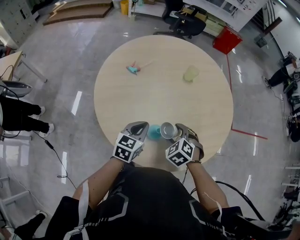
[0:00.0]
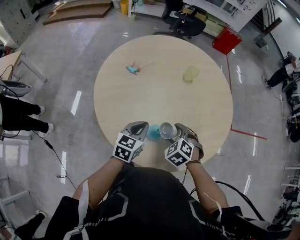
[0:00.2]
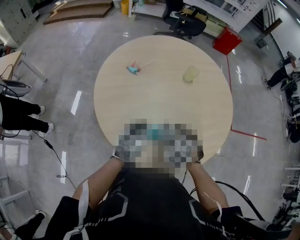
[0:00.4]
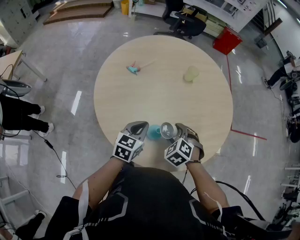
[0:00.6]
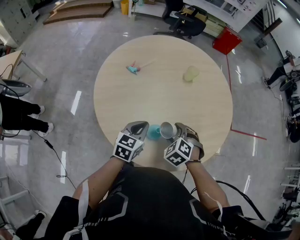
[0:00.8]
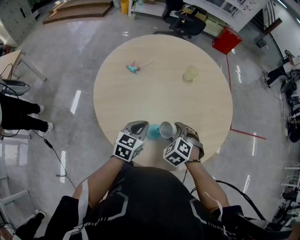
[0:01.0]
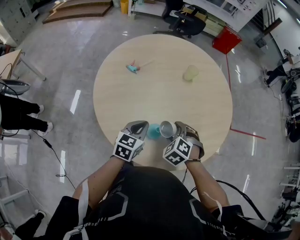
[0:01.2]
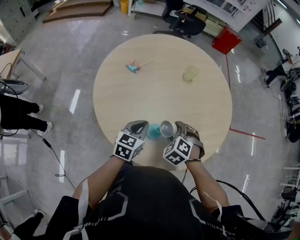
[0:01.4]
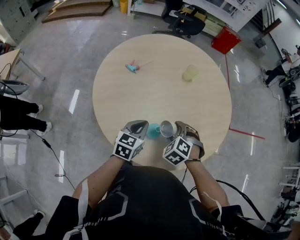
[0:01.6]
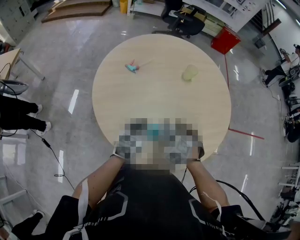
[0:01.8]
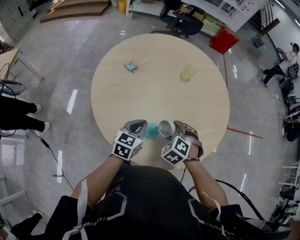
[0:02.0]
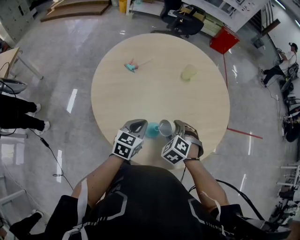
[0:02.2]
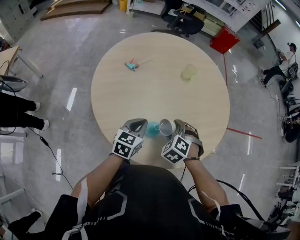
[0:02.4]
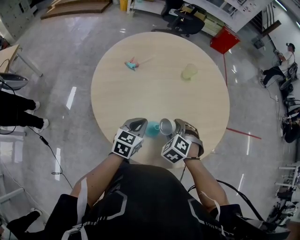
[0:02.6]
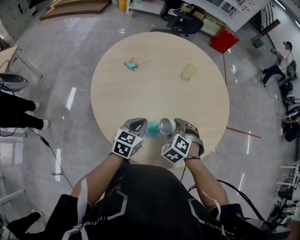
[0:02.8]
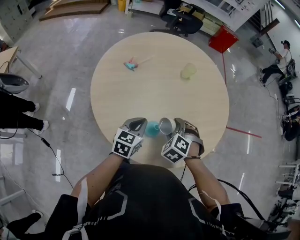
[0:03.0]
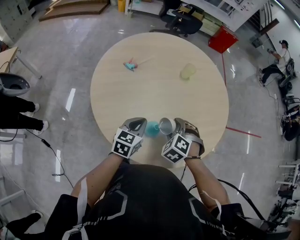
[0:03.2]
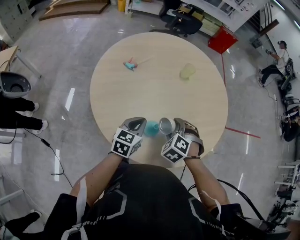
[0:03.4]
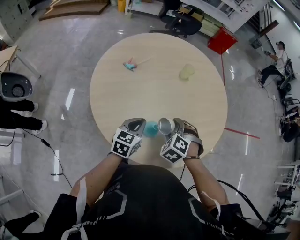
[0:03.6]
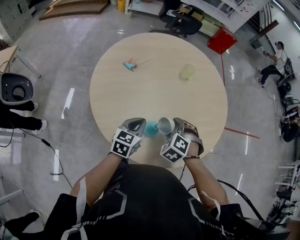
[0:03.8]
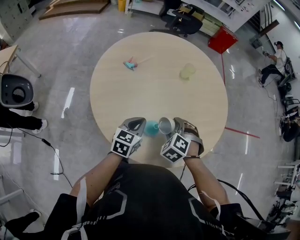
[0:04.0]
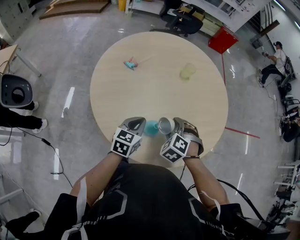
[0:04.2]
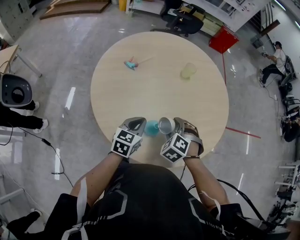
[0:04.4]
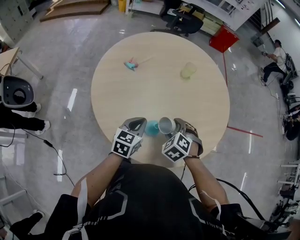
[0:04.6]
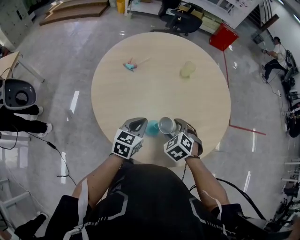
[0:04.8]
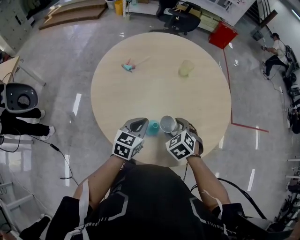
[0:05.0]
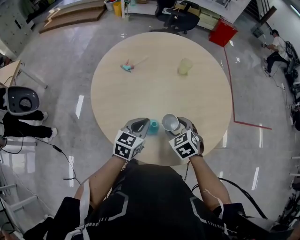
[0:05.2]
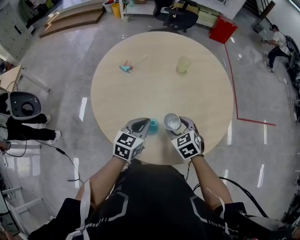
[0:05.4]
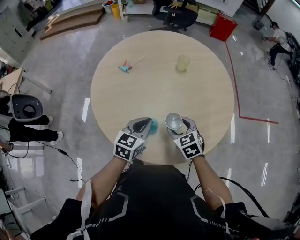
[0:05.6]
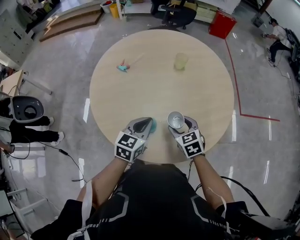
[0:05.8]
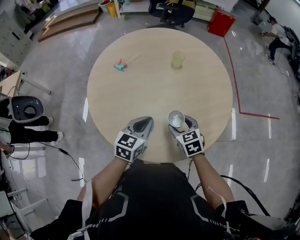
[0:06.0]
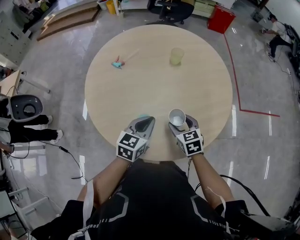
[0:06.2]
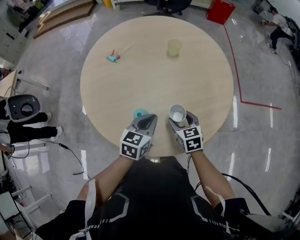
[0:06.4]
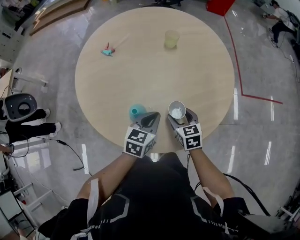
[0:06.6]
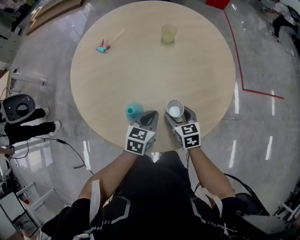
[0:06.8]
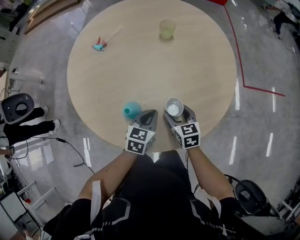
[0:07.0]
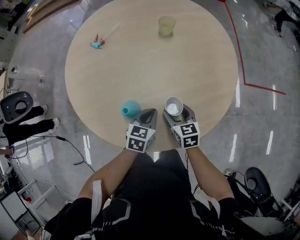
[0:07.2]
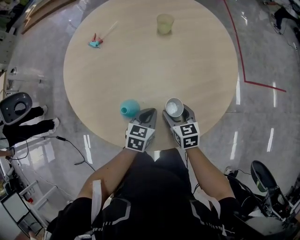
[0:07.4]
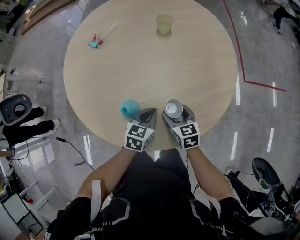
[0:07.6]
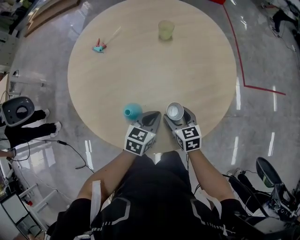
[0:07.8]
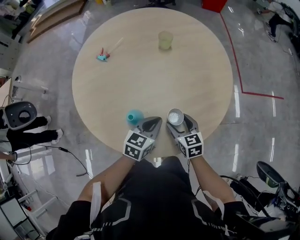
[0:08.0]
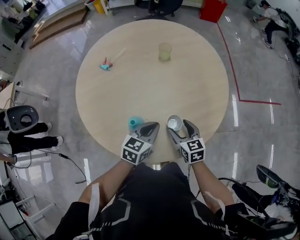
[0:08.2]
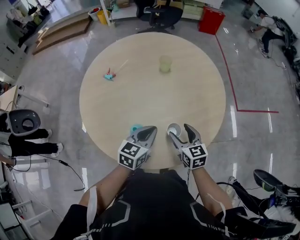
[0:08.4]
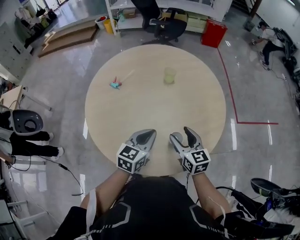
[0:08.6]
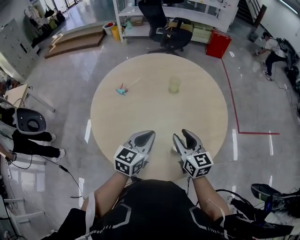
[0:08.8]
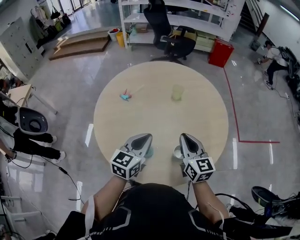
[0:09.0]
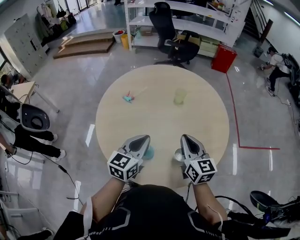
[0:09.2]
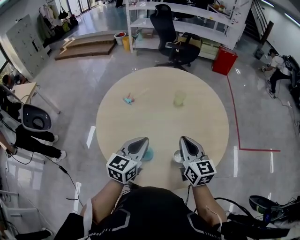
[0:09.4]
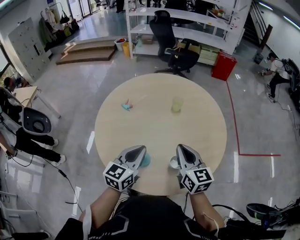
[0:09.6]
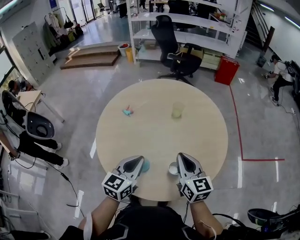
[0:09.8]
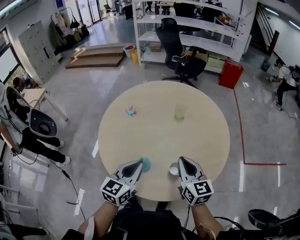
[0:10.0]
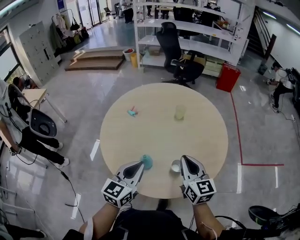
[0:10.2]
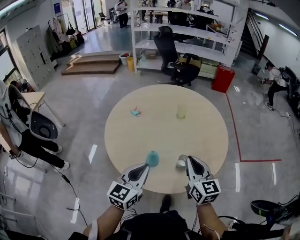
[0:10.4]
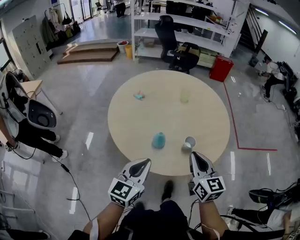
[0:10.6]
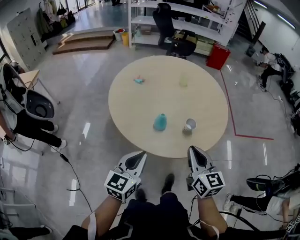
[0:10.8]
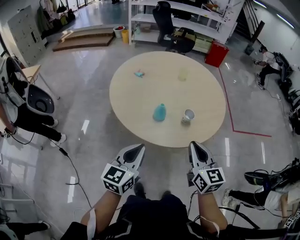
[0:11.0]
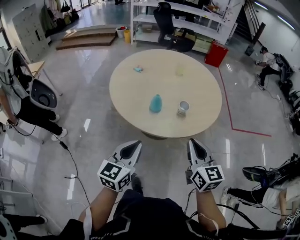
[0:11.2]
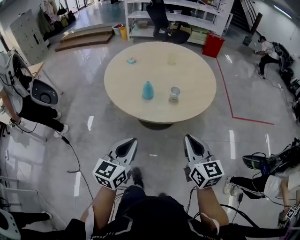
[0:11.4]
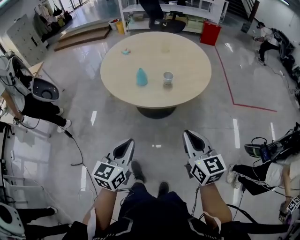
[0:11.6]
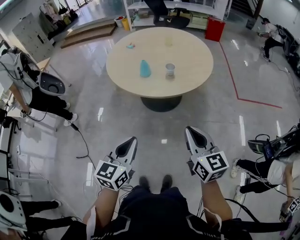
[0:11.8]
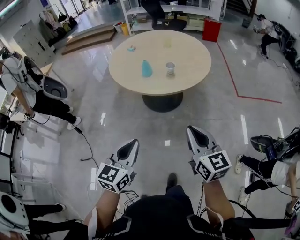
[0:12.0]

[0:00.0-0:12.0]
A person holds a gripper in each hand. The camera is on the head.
0:00.0 to 0:01.6: The grippers make only small movements.
0:01.6 to 0:03.0: Both grippers stay put.
0:03.0 to 0:04.4: Both grippers stay put.
0:04.4 to 0:06.0: The two grippers go approximately 5 cm to the right. The right gripper rolls clockwise, seen from behind, by about 40 degrees.
0:06.0 to 0:07.6: The right gripper heads downward, covering some 10 cm. Meanwhile the left gripper moves downward and to the right, some 15 cm.
0:07.6 to 0:09.0: The right gripper is displaced upward by about 25 cm, rotates roughly 30 degrees, and closes. Meanwhile the left gripper heads upward and to the left, covering some 25 cm, and rotates approximately 30 degrees.
0:09.0 to 0:10.4: The right gripper shifts approximately 10 cm backward and upward. The left gripper shifts about 15 cm backward.
0:10.4 to 0:12.0: The two grippers travel together, backward, roughly 50 cm.

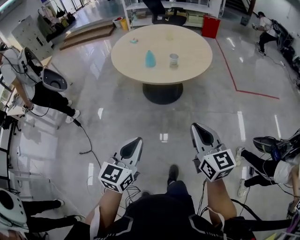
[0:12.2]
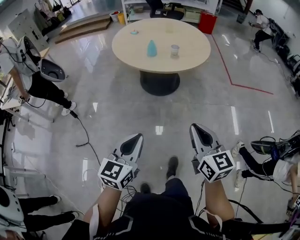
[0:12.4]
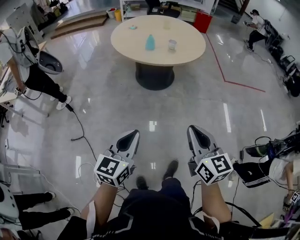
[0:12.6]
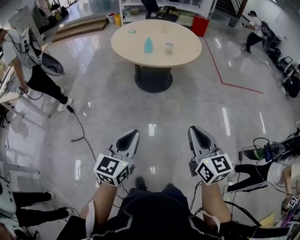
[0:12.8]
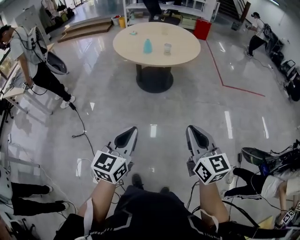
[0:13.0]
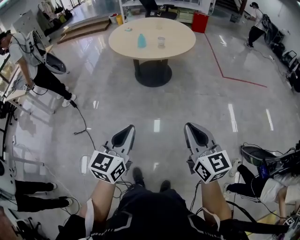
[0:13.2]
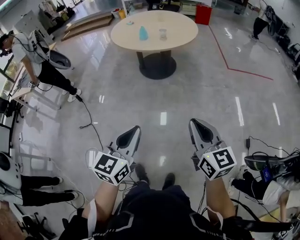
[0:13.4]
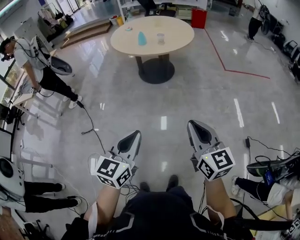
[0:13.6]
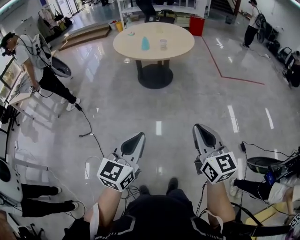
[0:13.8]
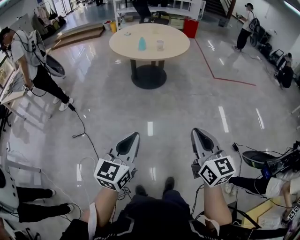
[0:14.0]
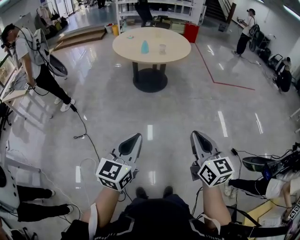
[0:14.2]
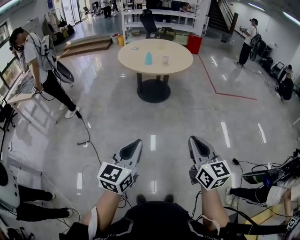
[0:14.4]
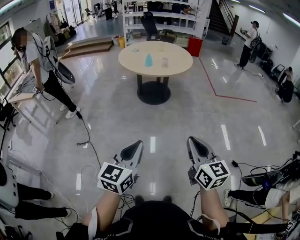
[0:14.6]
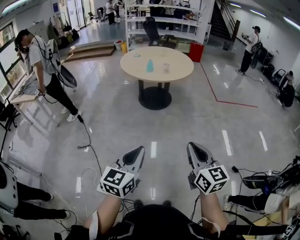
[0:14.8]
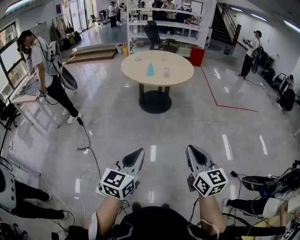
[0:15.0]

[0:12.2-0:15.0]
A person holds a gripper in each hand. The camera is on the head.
0:12.2 to 0:13.6: The grippers both shift backward by roughly 30 cm.
0:13.6 to 0:15.0: Both grippers travel together backward and to the left, about 10 cm.

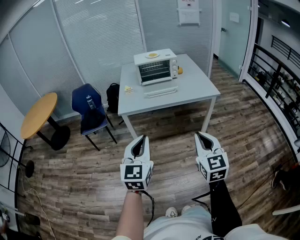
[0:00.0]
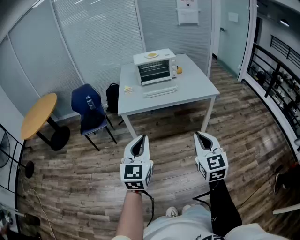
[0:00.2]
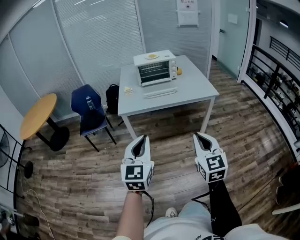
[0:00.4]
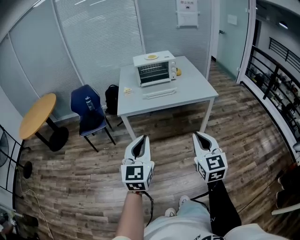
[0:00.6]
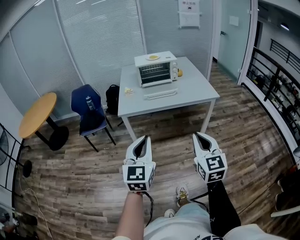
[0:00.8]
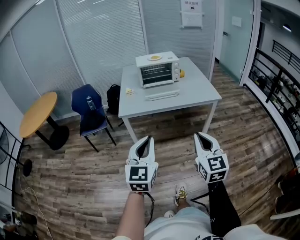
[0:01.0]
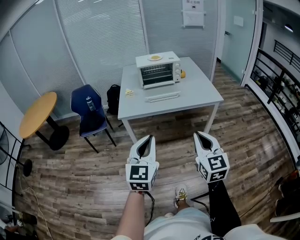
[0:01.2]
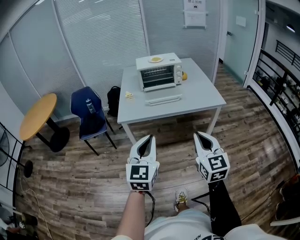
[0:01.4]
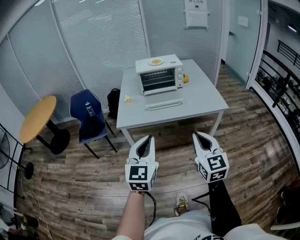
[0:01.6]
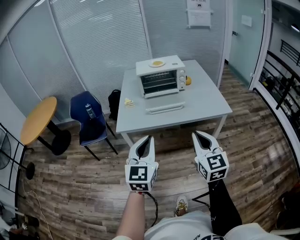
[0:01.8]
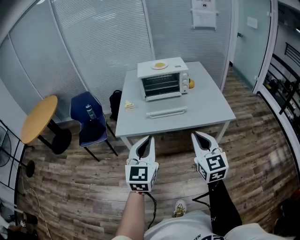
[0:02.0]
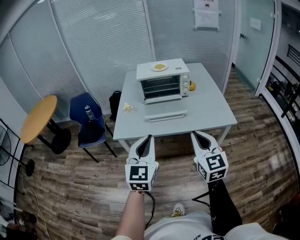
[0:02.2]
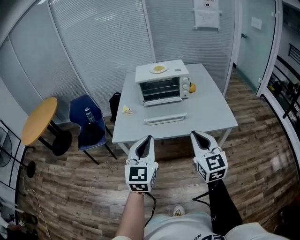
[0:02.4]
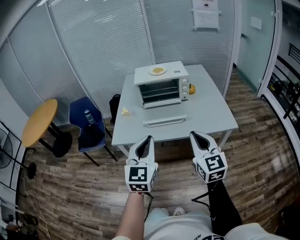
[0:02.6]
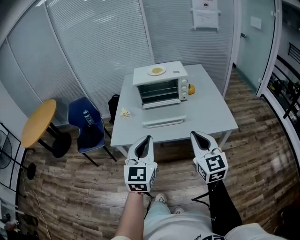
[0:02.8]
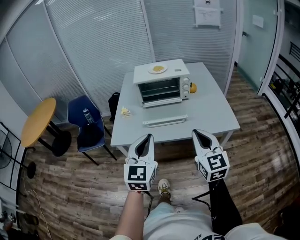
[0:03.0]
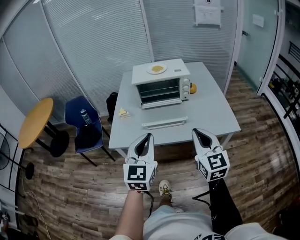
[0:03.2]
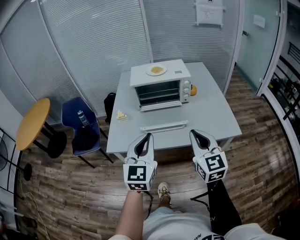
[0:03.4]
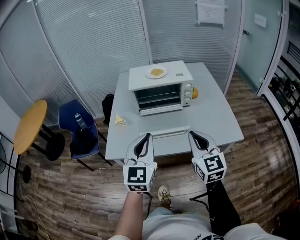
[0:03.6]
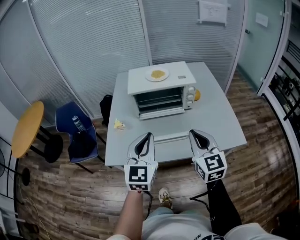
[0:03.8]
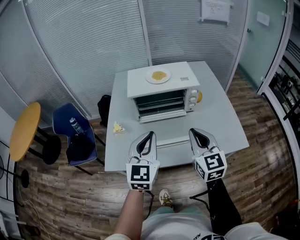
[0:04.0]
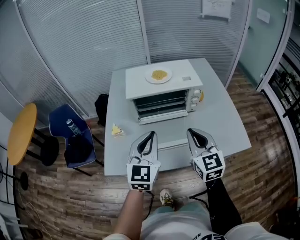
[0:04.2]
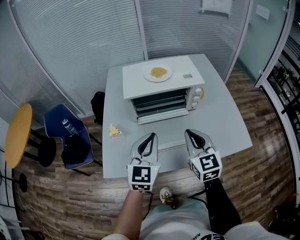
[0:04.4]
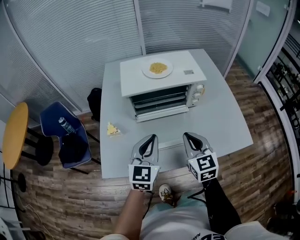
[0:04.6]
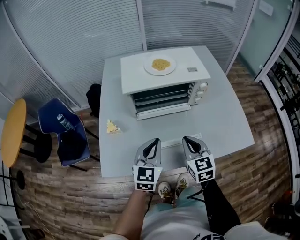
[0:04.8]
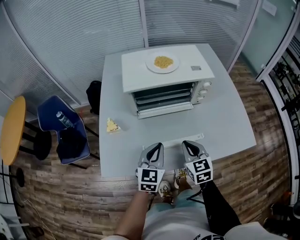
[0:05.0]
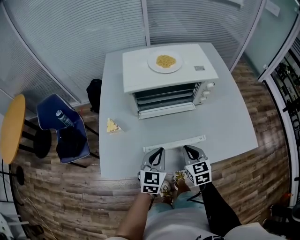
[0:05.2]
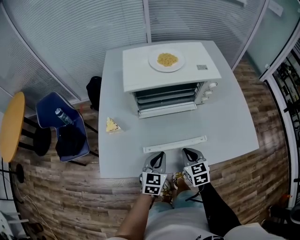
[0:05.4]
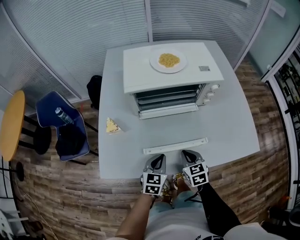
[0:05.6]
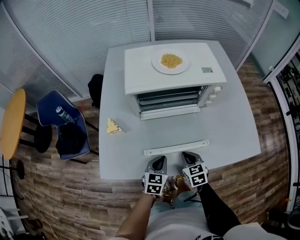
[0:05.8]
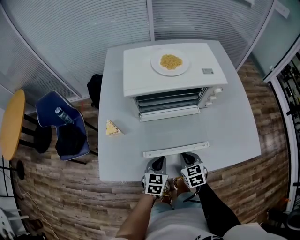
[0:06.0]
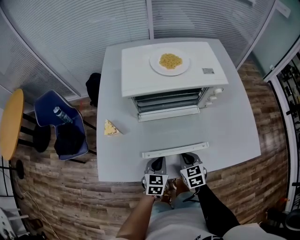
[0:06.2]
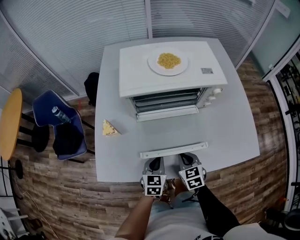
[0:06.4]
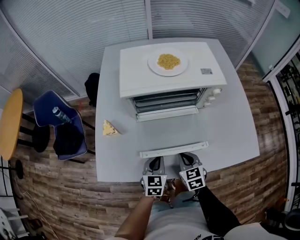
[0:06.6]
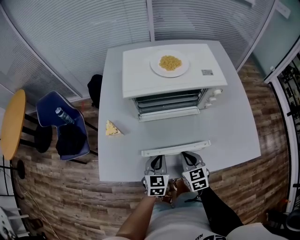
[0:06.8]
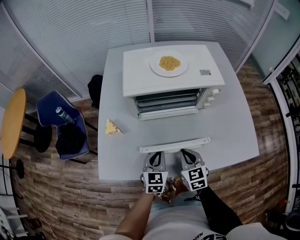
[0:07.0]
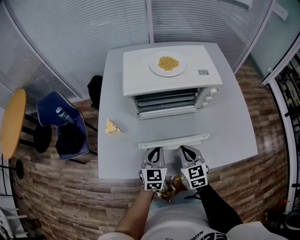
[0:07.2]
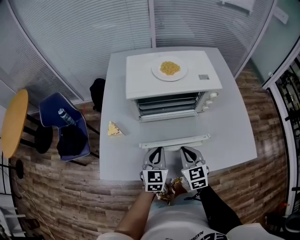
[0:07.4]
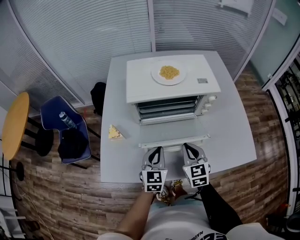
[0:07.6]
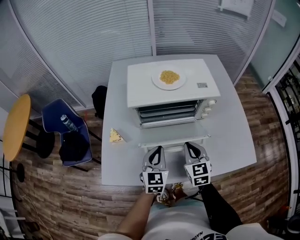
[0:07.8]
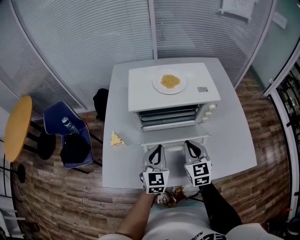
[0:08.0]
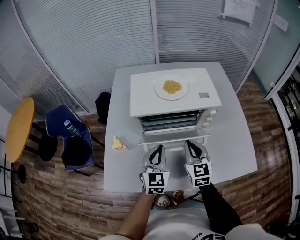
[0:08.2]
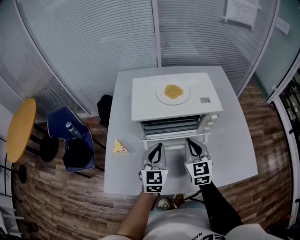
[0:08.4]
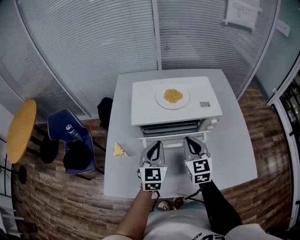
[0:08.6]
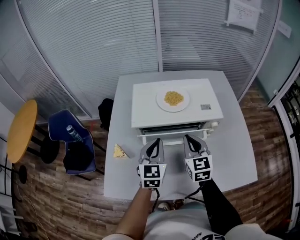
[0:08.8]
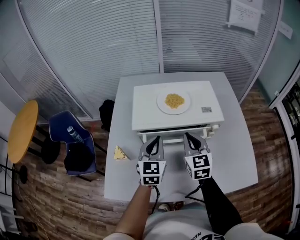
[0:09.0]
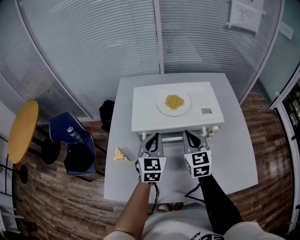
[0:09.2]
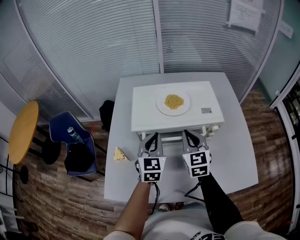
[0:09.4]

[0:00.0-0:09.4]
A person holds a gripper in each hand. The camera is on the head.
0:00.0 to 0:01.6: The grippers both shift forward by about 15 cm.
0:01.6 to 0:03.2: The two grippers go some 25 cm forward.
0:03.2 to 0:04.8: The two grippers go roughly 30 cm forward and downward. The right gripper rotates about 20 degrees.
0:04.8 to 0:06.2: Both grippers travel together downward, about 20 cm. The right gripper changes its angle by some 20 degrees. Meanwhile the left gripper changes its angle by roughly 20 degrees.
0:06.2 to 0:07.8: The left gripper is displaced upward and forward by roughly 15 cm, and changes its angle by roughly 20 degrees. The right gripper moves upward, approximately 15 cm, and swivels some 20 degrees.
0:07.8 to 0:09.4: Both grippers move forward and upward, roughly 15 cm.
